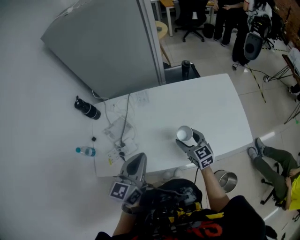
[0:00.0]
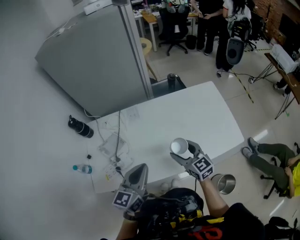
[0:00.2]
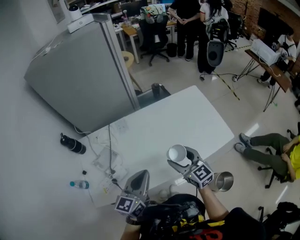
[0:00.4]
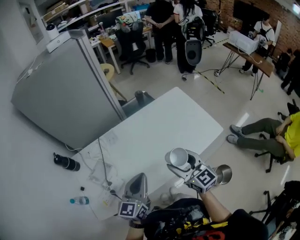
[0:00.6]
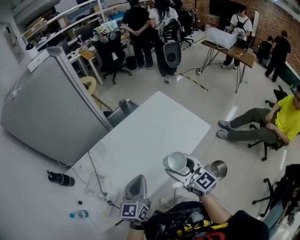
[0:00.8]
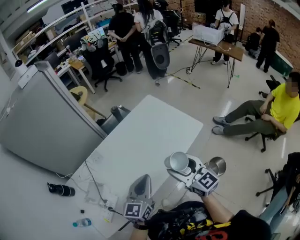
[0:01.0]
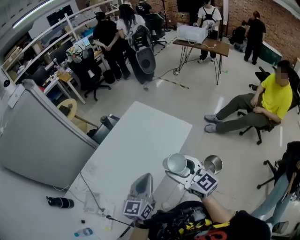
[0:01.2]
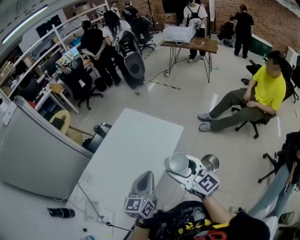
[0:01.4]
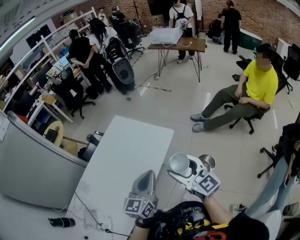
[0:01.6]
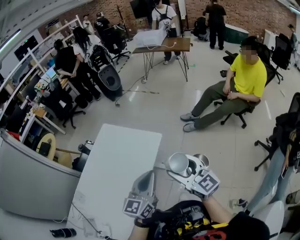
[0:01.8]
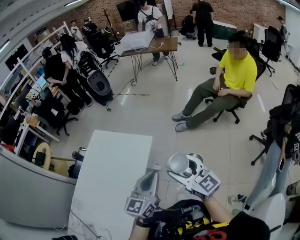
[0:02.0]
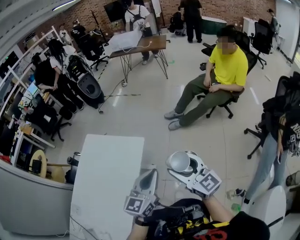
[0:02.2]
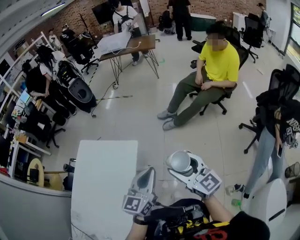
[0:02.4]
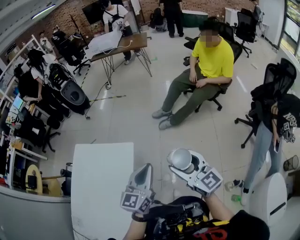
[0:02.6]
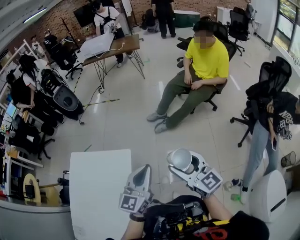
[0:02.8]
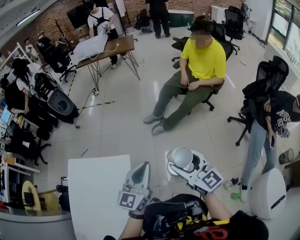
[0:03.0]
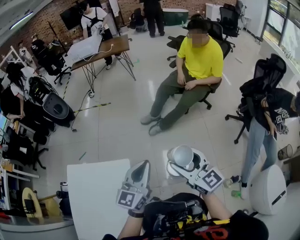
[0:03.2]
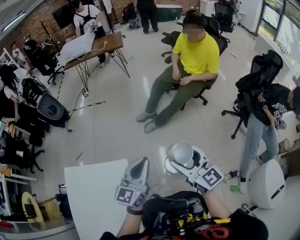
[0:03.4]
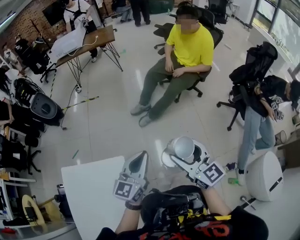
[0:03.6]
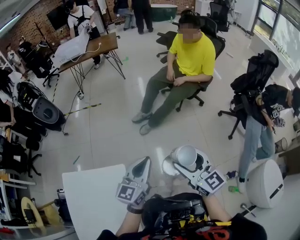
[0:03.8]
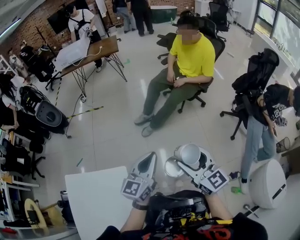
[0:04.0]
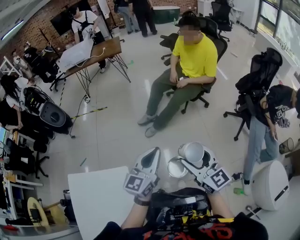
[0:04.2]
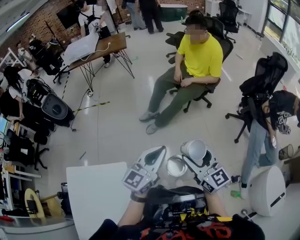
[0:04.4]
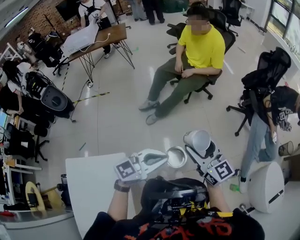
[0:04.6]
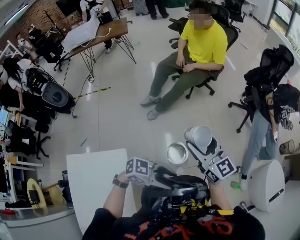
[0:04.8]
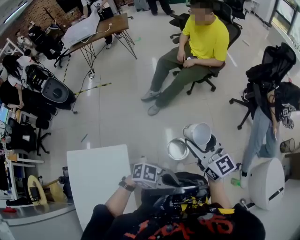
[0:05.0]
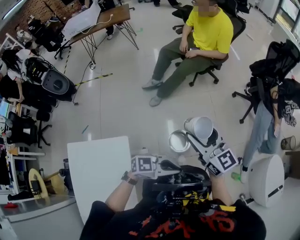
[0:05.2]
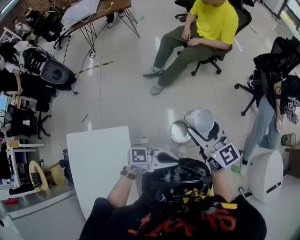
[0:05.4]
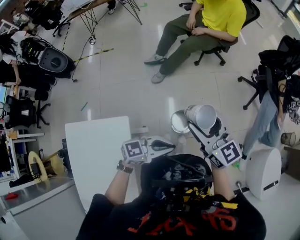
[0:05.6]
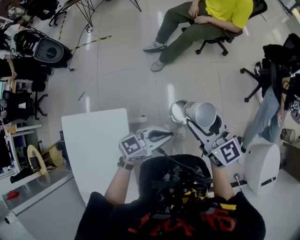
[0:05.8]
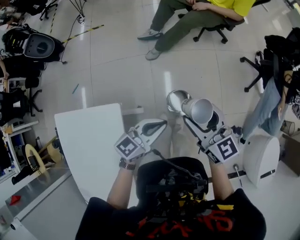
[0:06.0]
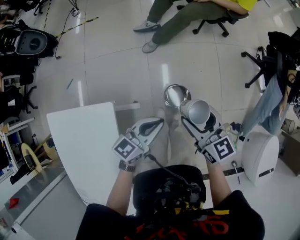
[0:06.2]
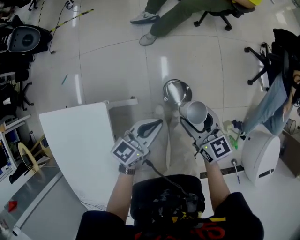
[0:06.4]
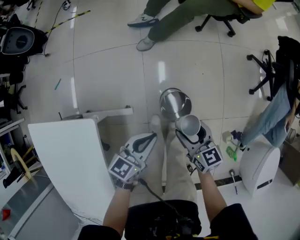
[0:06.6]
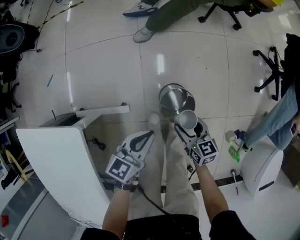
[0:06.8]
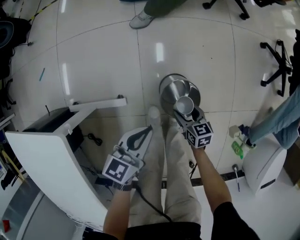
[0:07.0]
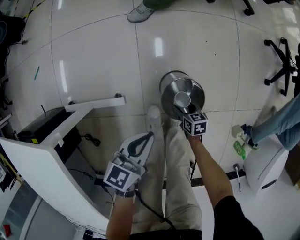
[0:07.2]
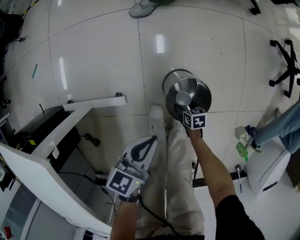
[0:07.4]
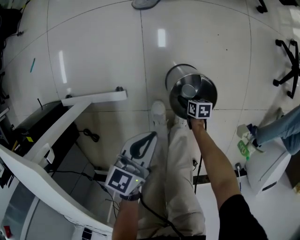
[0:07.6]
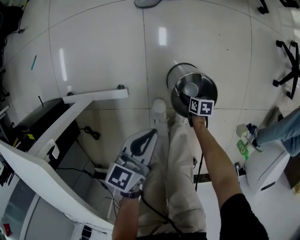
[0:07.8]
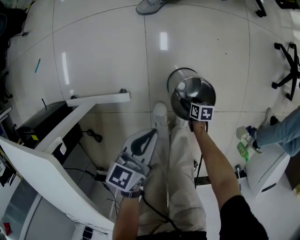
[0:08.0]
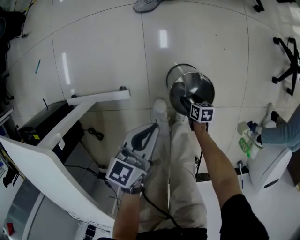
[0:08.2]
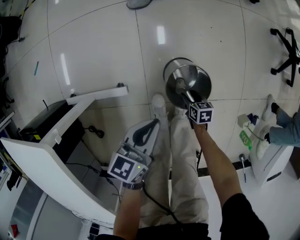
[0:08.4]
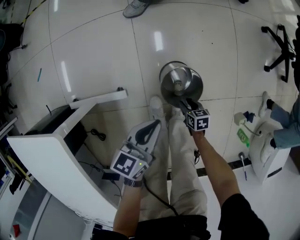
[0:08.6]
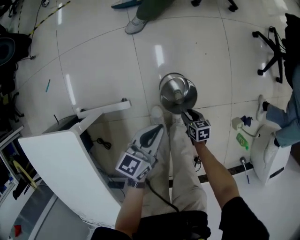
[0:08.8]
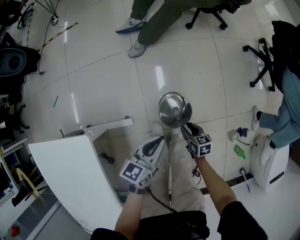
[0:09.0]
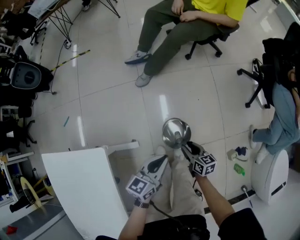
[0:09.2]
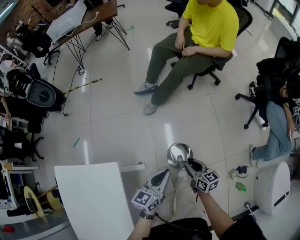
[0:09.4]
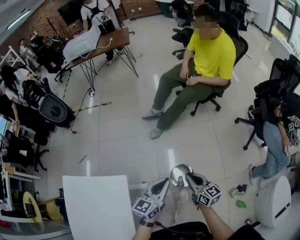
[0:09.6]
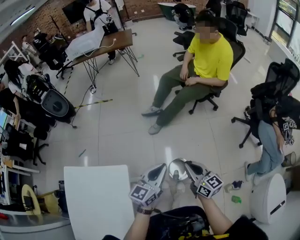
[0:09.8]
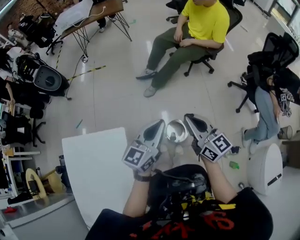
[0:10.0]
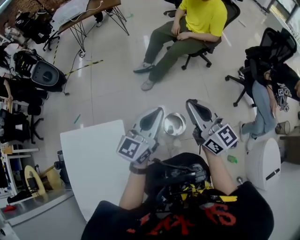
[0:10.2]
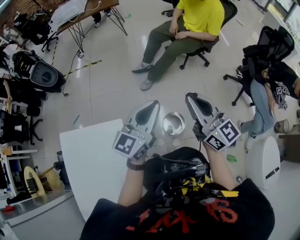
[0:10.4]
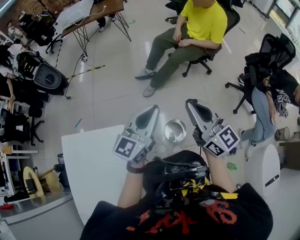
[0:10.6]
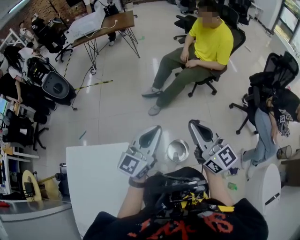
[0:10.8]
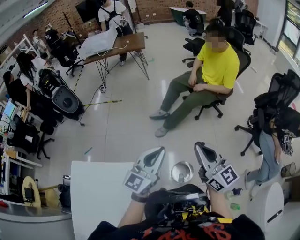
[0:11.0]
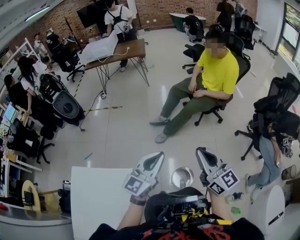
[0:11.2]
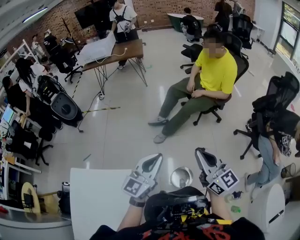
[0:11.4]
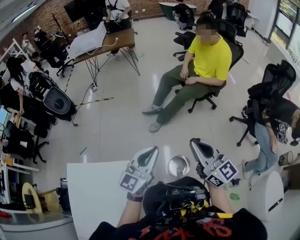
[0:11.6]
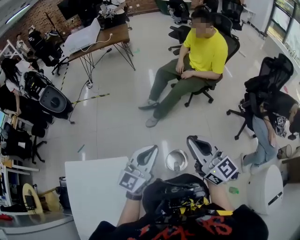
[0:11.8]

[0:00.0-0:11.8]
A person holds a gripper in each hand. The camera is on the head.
0:00.0 to 0:01.4: The left gripper changes place by roughly 30 cm, and rotates some 50 degrees. Meanwhile the right gripper shifts by some 35 cm, and swivels some 50 degrees.
0:01.4 to 0:03.0: The right gripper changes place by approximately 35 cm, and changes its angle by approximately 40 degrees. Meanwhile the left gripper ends up roughly 35 cm from where it was, and rotates some 40 degrees.
0:03.0 to 0:04.4: The right gripper moves to the right and forward, approximately 10 cm. The left gripper shifts approximately 15 cm forward and to the right, and swivels some 20 degrees.
0:04.4 to 0:06.0: The left gripper heads downward, covering some 15 cm, turns by some 20 degrees, and opens, then closes once more. Meanwhile the right gripper shifts roughly 10 cm downward.
0:06.0 to 0:07.4: The left gripper moves downward, some 40 cm, and swivels roughly 30 degrees. The right gripper moves downward, roughly 80 cm, and points its fingers some 50 degrees further downward.
0:07.4 to 0:08.8: The right gripper moves upward, some 15 cm, and closes its fingers; the left gripper travels upward and to the right by about 10 cm.
0:08.8 to 0:10.4: The right gripper moves upward, about 80 cm, tips its fingers upward by roughly 60 degrees, and closes up. The left gripper is displaced upward by approximately 50 cm, and swivels some 40 degrees.
0:10.4 to 0:11.8: The grippers make only small movements.

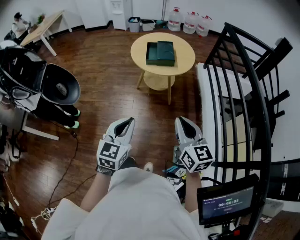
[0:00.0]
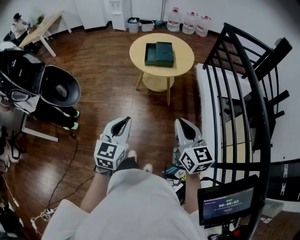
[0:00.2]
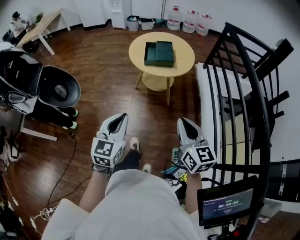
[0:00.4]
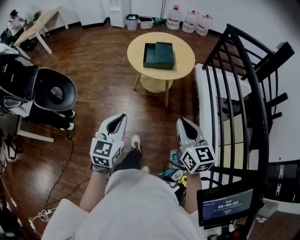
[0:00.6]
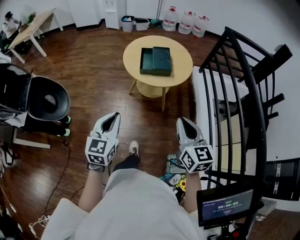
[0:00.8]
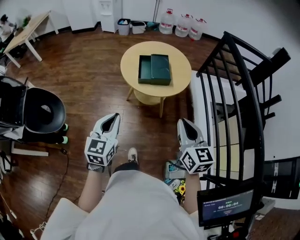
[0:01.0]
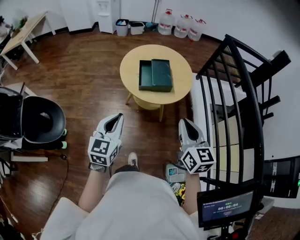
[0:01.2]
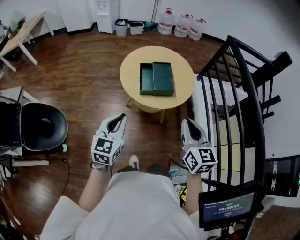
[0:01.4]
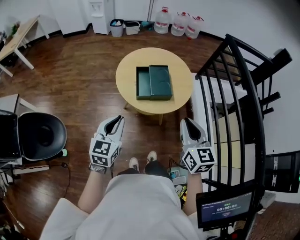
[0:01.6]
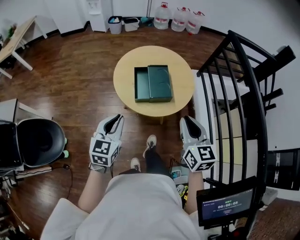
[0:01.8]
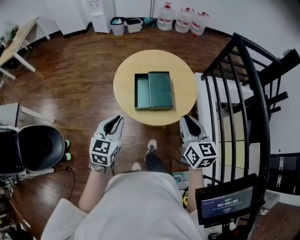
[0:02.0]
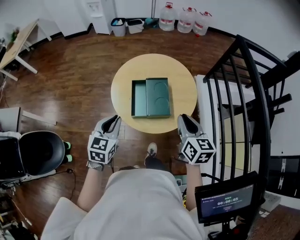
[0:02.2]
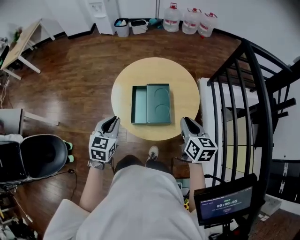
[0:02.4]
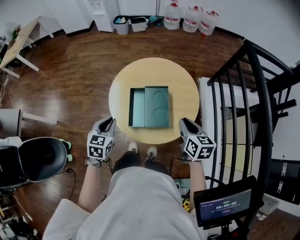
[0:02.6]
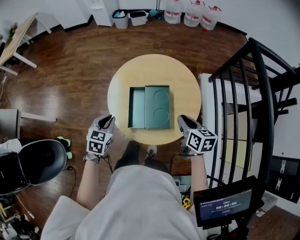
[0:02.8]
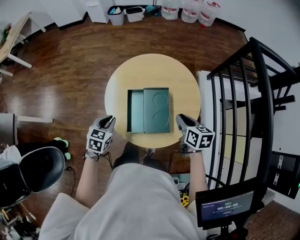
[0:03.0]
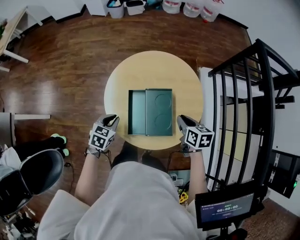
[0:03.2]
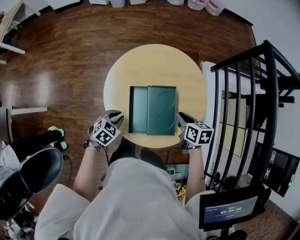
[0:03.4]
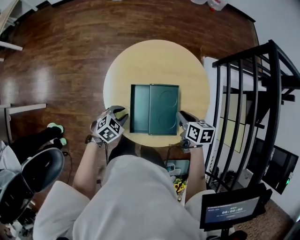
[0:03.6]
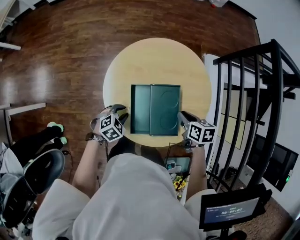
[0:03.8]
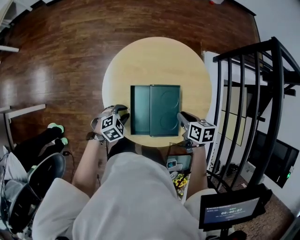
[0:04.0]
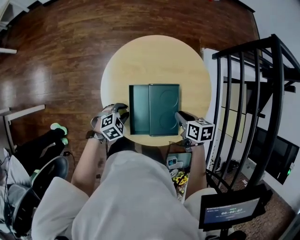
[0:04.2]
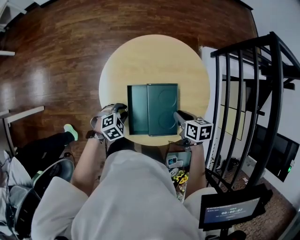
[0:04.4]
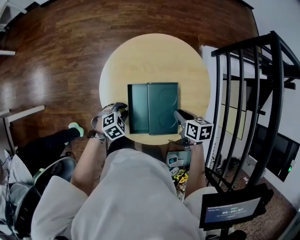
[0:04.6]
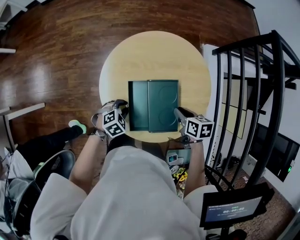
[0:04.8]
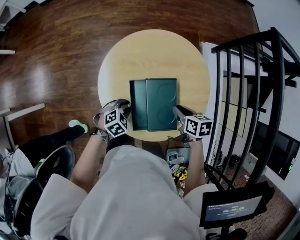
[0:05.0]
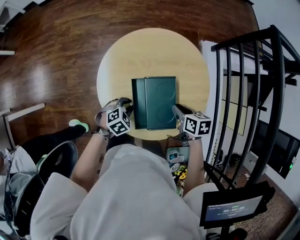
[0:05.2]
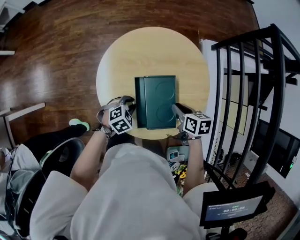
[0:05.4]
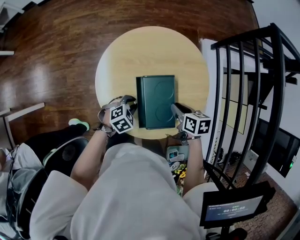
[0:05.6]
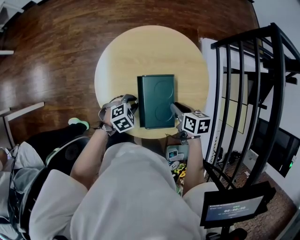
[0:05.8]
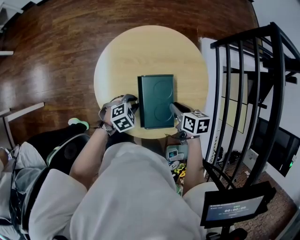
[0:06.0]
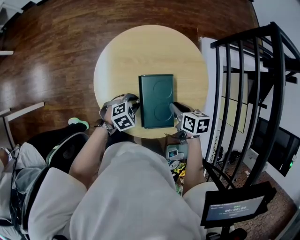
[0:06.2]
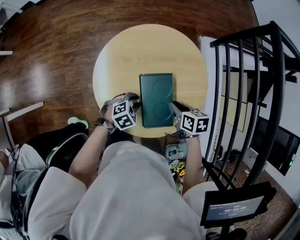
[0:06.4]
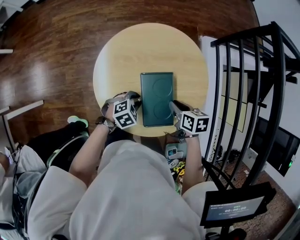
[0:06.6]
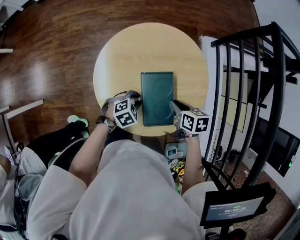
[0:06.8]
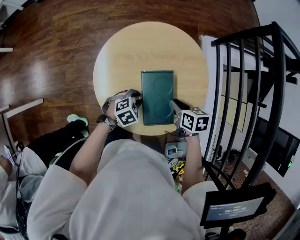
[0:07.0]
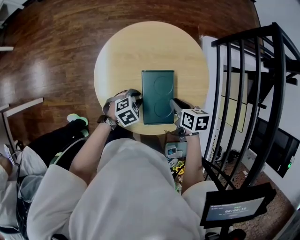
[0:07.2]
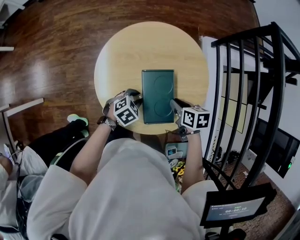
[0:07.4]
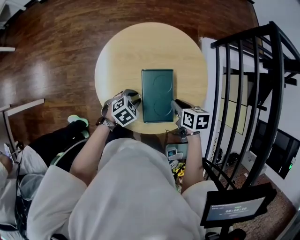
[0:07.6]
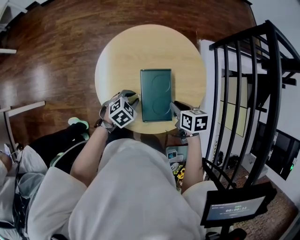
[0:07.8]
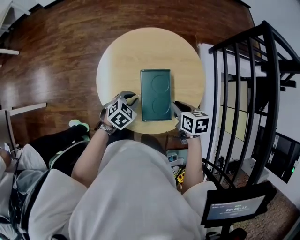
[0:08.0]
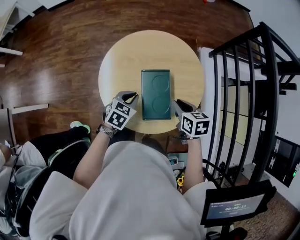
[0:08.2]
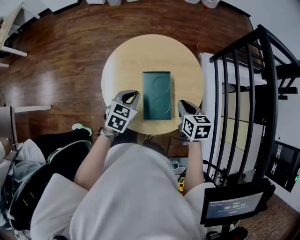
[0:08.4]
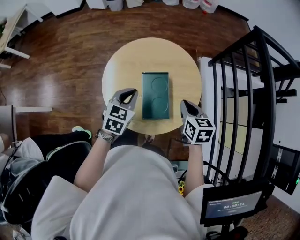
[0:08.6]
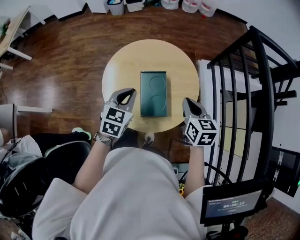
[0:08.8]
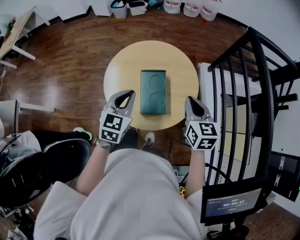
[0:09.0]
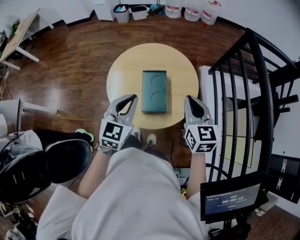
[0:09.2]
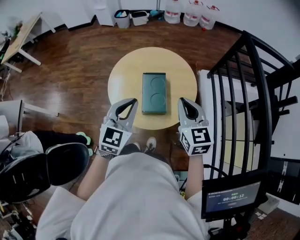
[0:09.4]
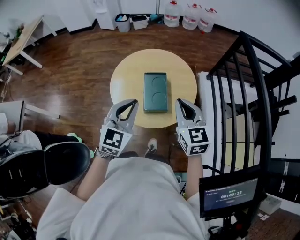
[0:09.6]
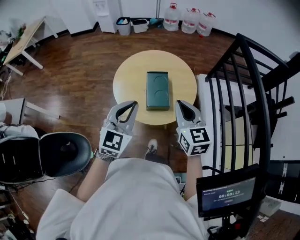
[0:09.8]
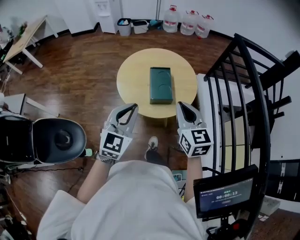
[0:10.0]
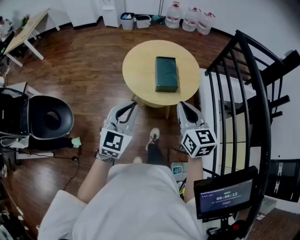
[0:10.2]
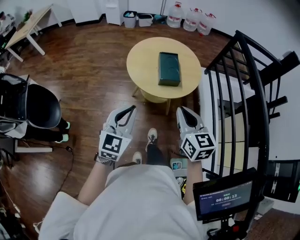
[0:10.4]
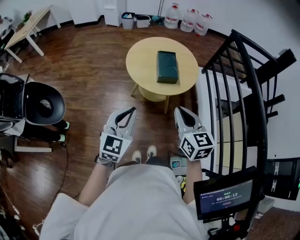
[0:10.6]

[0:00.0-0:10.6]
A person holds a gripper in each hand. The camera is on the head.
0:00.0 to 0:01.6: The two grippers go some 25 cm forward.
0:01.6 to 0:03.0: The two grippers go some 30 cm forward and downward. The right gripper swivels roughly 40 degrees. Meanwhile the left gripper changes its angle by approximately 30 degrees.
0:03.0 to 0:04.6: The left gripper travels downward and to the right by some 15 cm, and rotates approximately 50 degrees, while the right gripper moves downward, about 10 cm, and changes its angle by roughly 20 degrees.
0:04.6 to 0:06.0: The left gripper is displaced to the right by about 5 cm.
0:06.0 to 0:07.6: The grippers move only a little.
0:07.6 to 0:09.0: The two grippers go some 20 cm upward. The left gripper tilts its fingers about 40 degrees upward, and closes. The right gripper swivels roughly 50 degrees.
0:09.0 to 0:10.6: The left gripper shifts about 30 cm backward; the right gripper is displaced backward and to the left by roughly 30 cm.

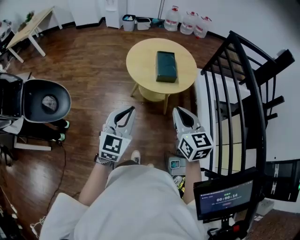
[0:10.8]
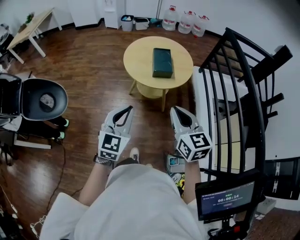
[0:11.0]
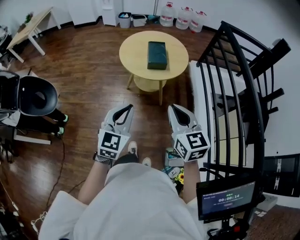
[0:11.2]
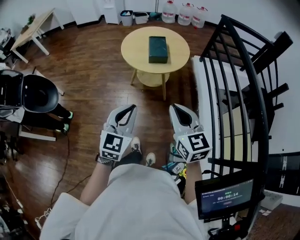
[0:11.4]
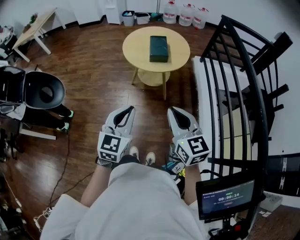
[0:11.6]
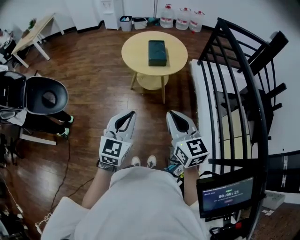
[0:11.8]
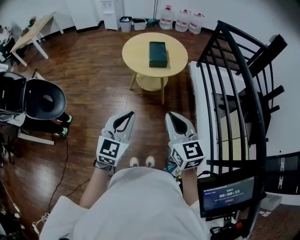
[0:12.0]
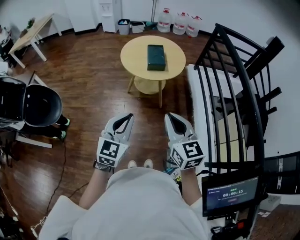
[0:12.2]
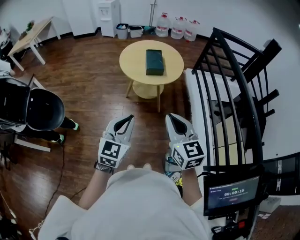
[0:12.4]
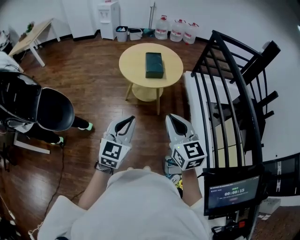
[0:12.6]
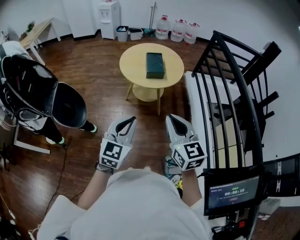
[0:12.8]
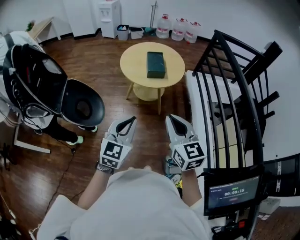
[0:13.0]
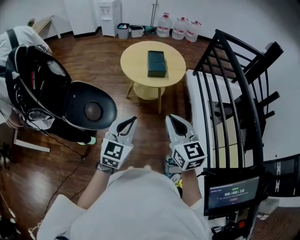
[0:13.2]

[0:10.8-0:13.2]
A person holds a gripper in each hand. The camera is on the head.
0:10.8 to 0:12.0: The two grippers go some 15 cm backward.
0:12.0 to 0:13.2: There are only small adjustments of the grippers.
